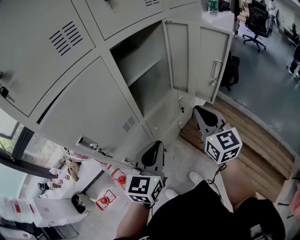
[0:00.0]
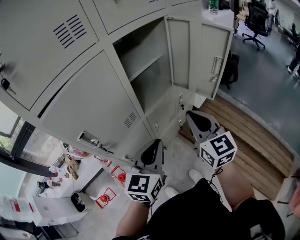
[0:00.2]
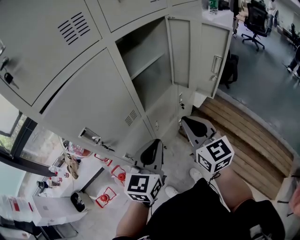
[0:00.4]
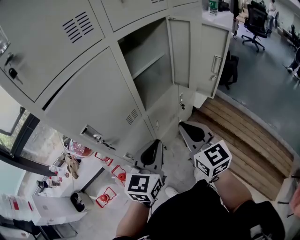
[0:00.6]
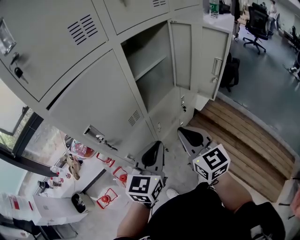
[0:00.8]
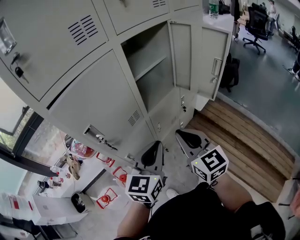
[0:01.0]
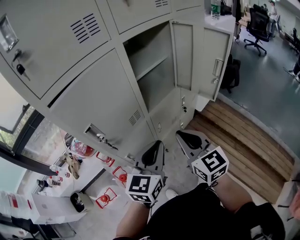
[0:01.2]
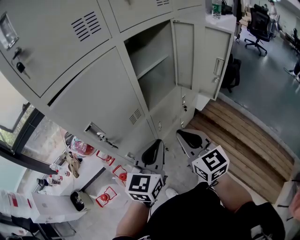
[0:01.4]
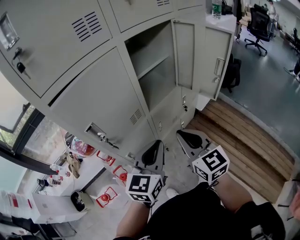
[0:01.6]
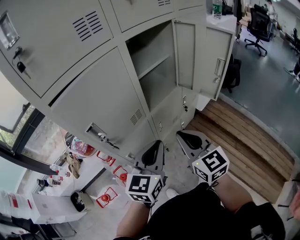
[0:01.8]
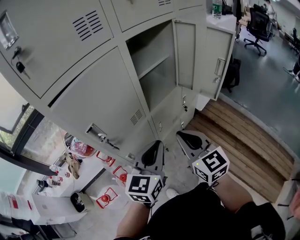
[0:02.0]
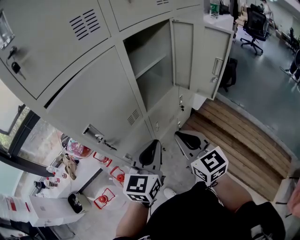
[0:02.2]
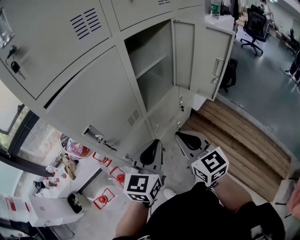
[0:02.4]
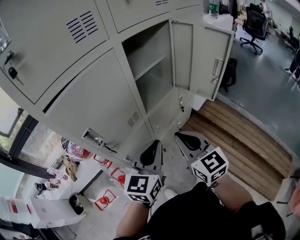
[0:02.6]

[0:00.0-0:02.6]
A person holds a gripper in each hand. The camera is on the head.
0:00.0 to 0:01.2: The right gripper goes about 15 cm to the left and backward.
0:01.2 to 0:02.6: The grippers stay close to where they were, moving slightly.

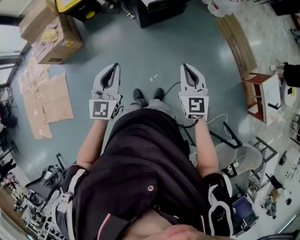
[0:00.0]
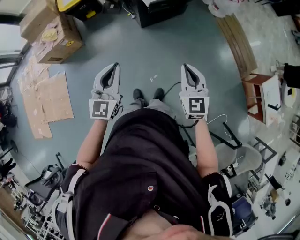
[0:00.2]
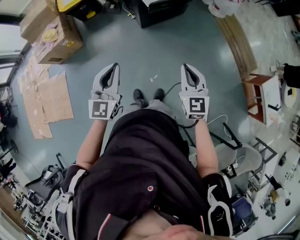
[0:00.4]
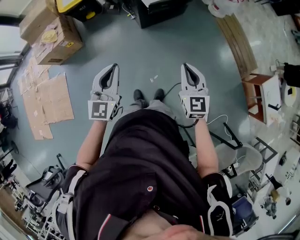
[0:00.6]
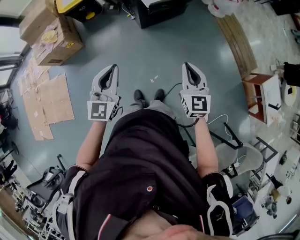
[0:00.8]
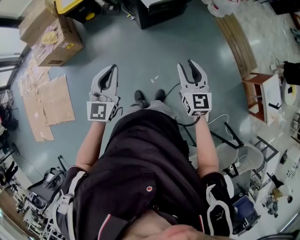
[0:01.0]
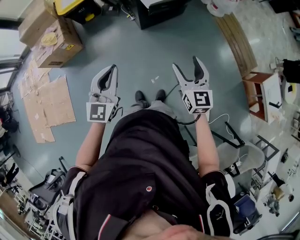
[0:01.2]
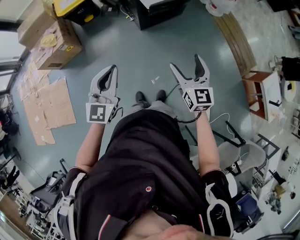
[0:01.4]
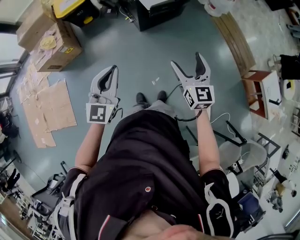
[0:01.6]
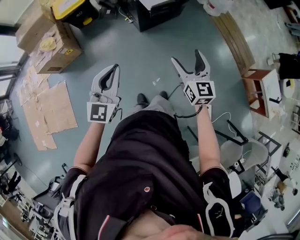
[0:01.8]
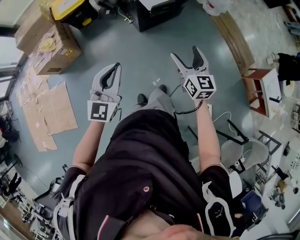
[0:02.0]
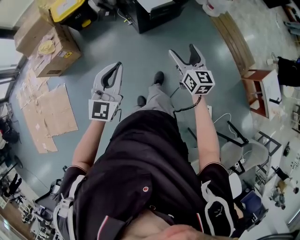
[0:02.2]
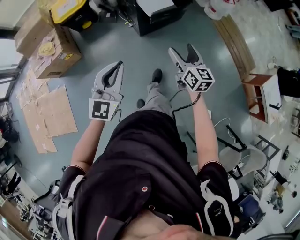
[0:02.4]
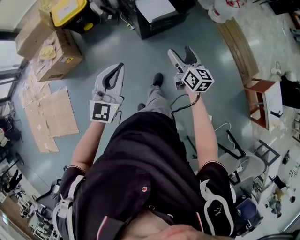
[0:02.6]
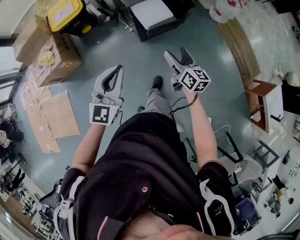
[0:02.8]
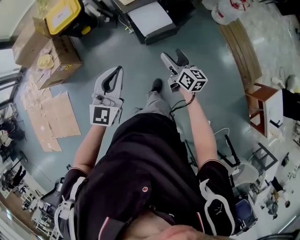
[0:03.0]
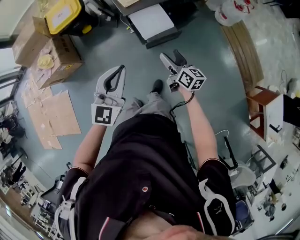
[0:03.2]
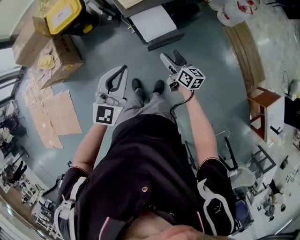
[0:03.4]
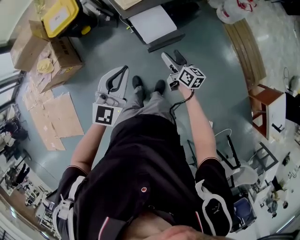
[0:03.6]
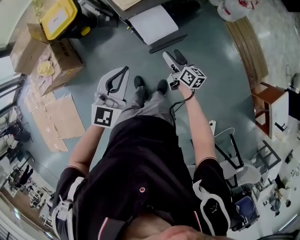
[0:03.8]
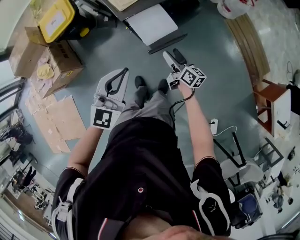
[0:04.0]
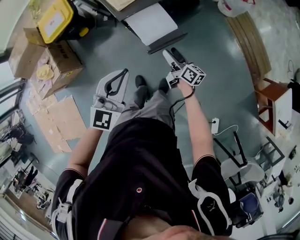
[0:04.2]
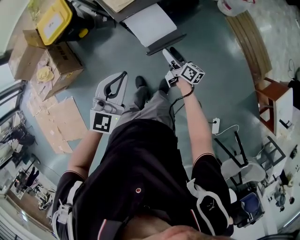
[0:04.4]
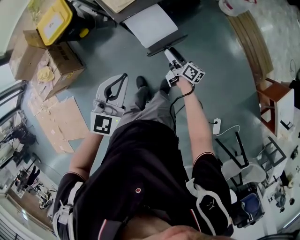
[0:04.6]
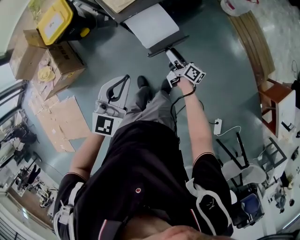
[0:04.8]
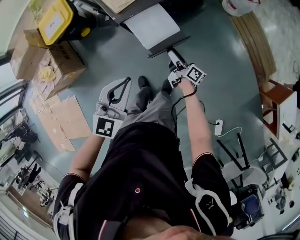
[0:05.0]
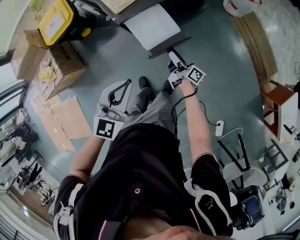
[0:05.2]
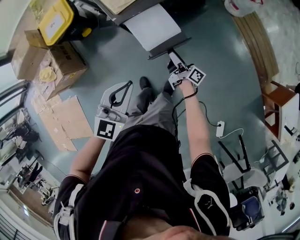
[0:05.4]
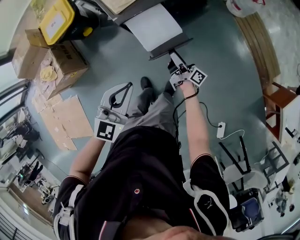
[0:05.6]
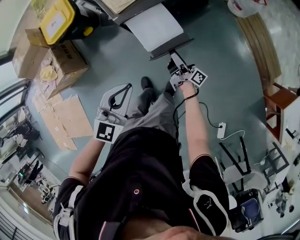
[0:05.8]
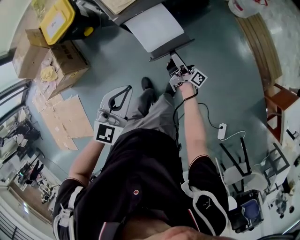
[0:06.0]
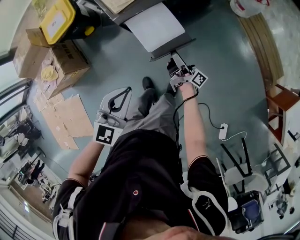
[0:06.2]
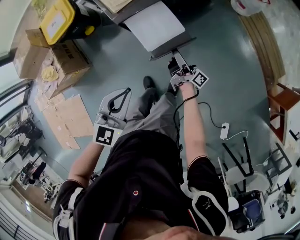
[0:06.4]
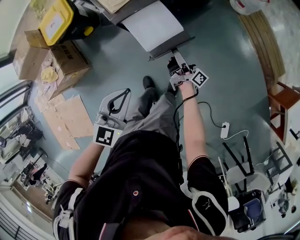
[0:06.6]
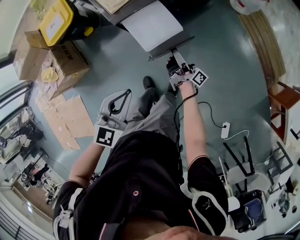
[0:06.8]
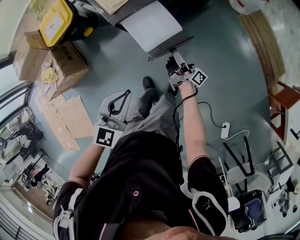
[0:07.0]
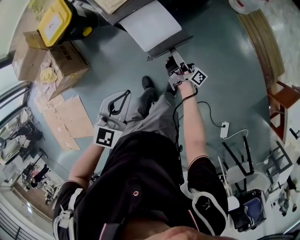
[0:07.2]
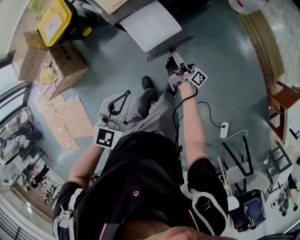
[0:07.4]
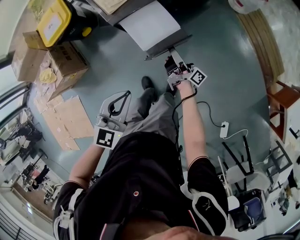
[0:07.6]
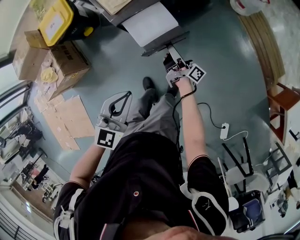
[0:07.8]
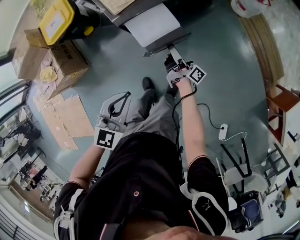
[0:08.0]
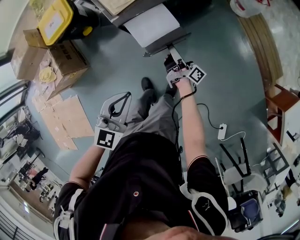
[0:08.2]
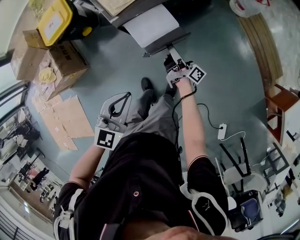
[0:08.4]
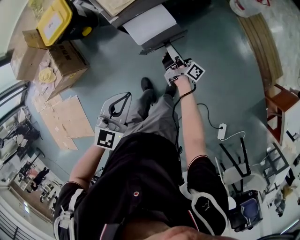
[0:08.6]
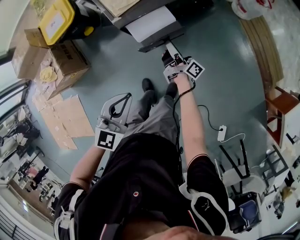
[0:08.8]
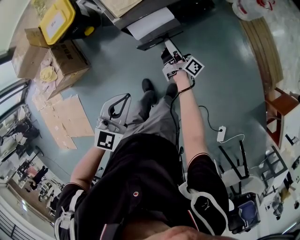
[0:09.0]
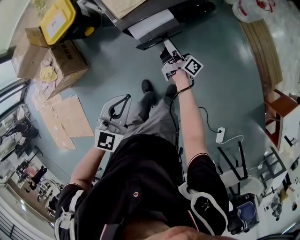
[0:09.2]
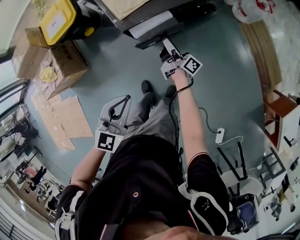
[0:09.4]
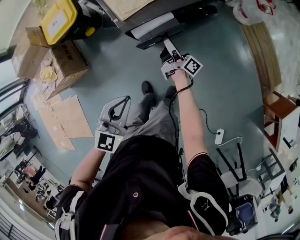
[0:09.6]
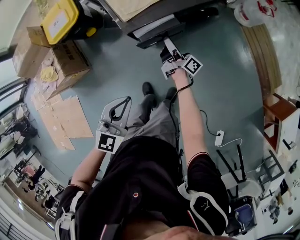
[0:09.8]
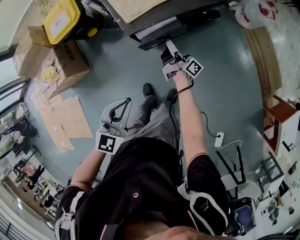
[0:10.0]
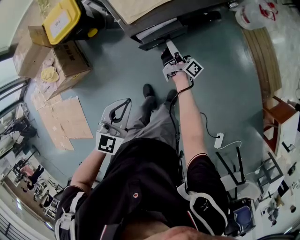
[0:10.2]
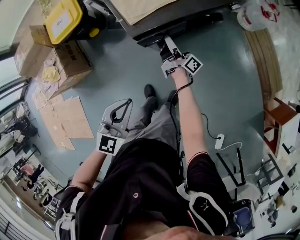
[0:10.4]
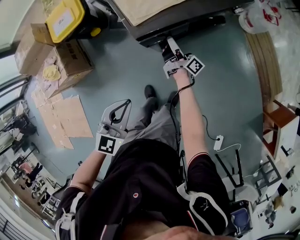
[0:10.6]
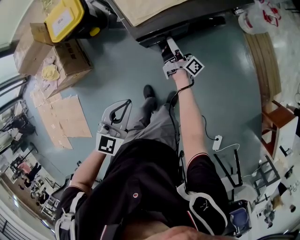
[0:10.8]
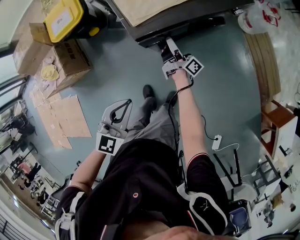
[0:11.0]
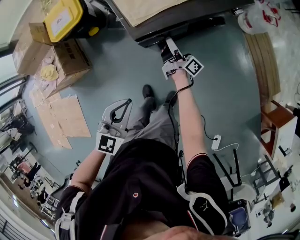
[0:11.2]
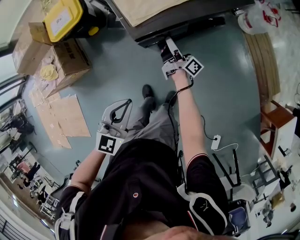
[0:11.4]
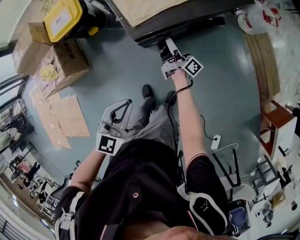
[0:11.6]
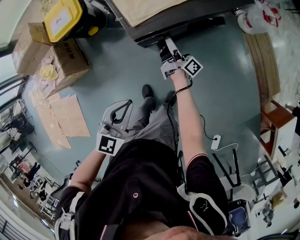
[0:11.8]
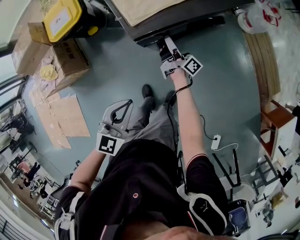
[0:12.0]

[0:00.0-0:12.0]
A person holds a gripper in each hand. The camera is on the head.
0:00.0 to 0:01.6: The right gripper ends up roughly 5 cm from where it was, and opens.
0:01.6 to 0:03.0: The right gripper is displaced forward and downward by approximately 30 cm, and swivels roughly 40 degrees. Meanwhile the left gripper goes about 25 cm forward.
0:03.0 to 0:04.4: The right gripper heads downward and forward, covering some 20 cm, and swivels roughly 20 degrees. The left gripper goes approximately 10 cm forward and downward.
0:04.4 to 0:06.0: The left gripper shifts approximately 5 cm downward. The right gripper turns by some 30 degrees.
0:06.0 to 0:07.6: The grippers stay close to where they were, moving slightly.
0:07.6 to 0:09.0: The right gripper is displaced forward by approximately 5 cm.
0:09.0 to 0:10.4: The right gripper moves forward, some 5 cm.
0:10.4 to 0:12.0: The grippers move only a little.

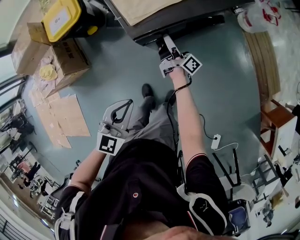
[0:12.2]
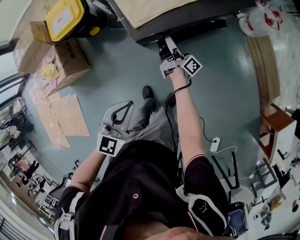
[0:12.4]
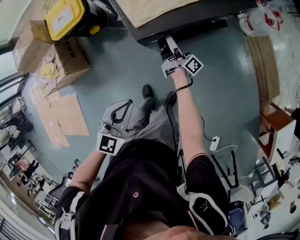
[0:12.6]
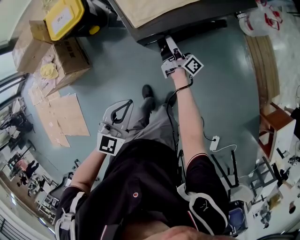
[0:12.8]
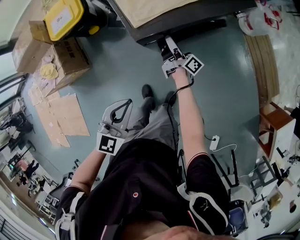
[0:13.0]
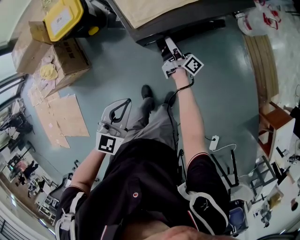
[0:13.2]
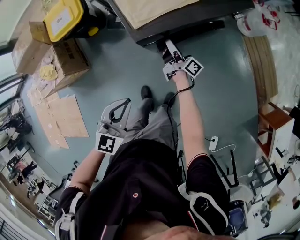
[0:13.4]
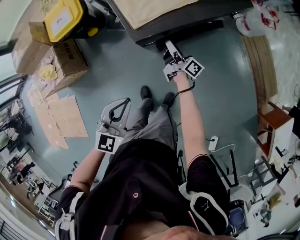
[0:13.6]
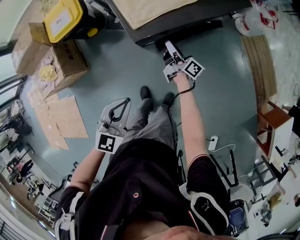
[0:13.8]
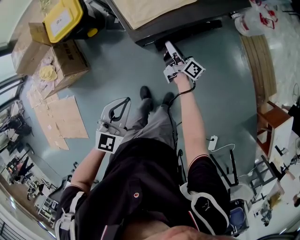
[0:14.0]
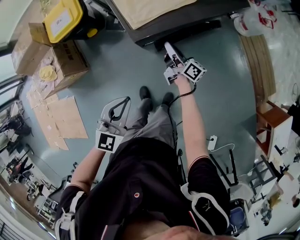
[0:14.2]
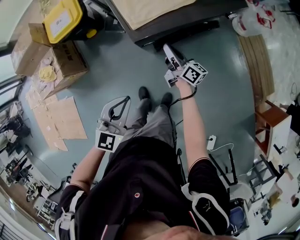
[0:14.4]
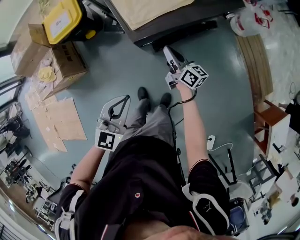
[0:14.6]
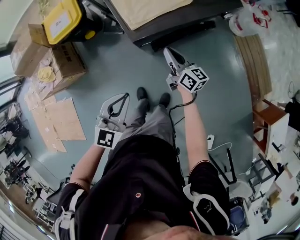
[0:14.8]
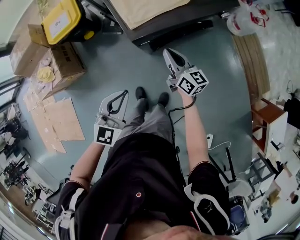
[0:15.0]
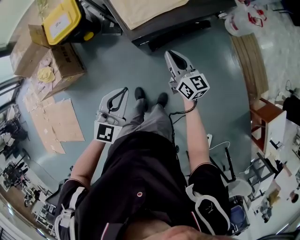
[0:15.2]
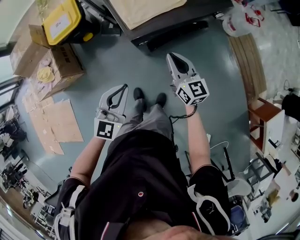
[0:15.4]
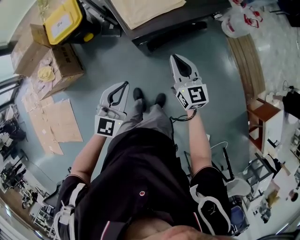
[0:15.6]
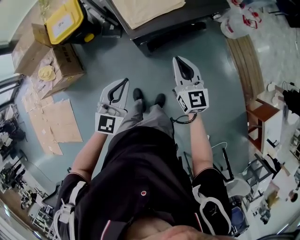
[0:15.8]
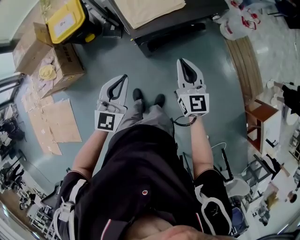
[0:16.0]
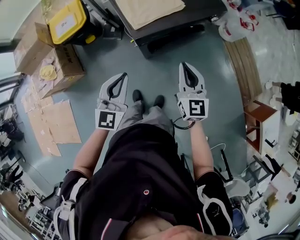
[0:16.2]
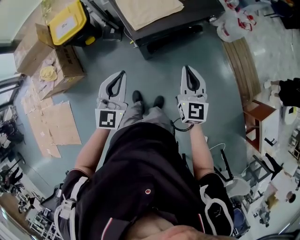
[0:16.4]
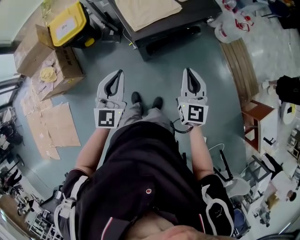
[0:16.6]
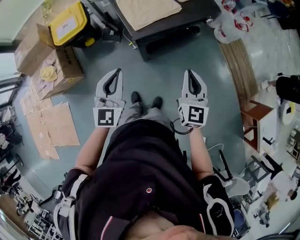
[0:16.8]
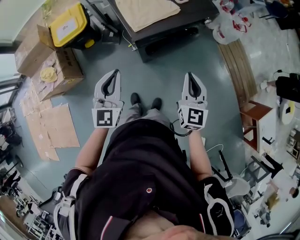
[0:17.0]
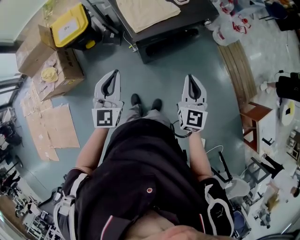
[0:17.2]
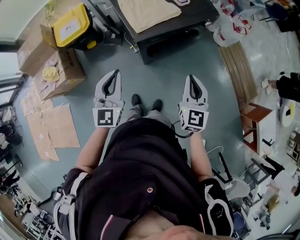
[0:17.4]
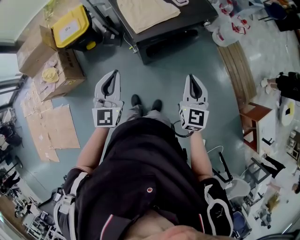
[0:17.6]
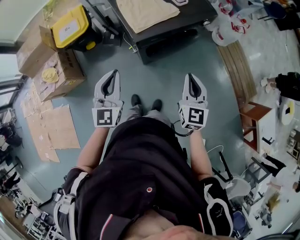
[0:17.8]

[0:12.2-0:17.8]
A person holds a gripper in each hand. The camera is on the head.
0:12.2 to 0:13.6: The grippers make only small movements.
0:13.6 to 0:15.0: The right gripper is displaced upward and backward by roughly 15 cm, and changes its angle by some 40 degrees.
0:15.0 to 0:16.4: The right gripper is displaced upward and backward by roughly 20 cm, and turns by about 40 degrees, while the left gripper travels upward by roughly 10 cm.
0:16.4 to 0:17.8: The right gripper changes place by roughly 5 cm.

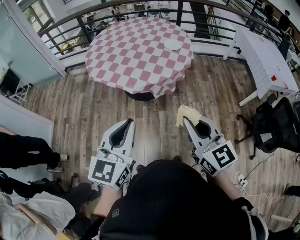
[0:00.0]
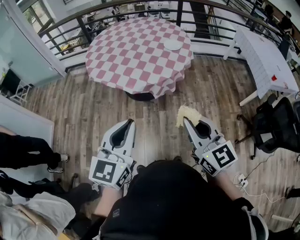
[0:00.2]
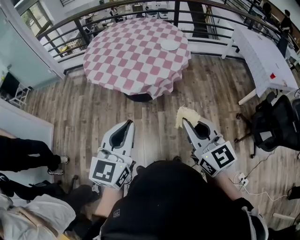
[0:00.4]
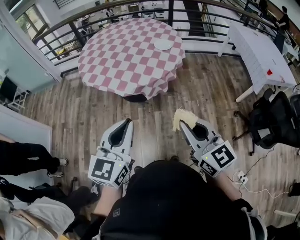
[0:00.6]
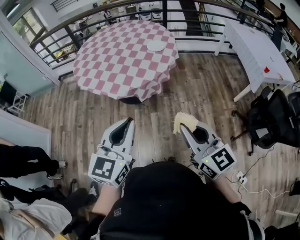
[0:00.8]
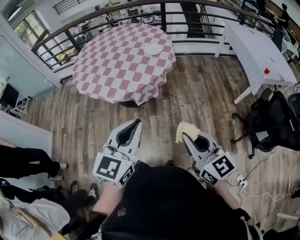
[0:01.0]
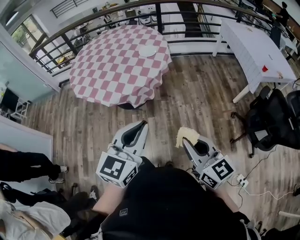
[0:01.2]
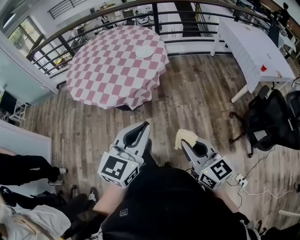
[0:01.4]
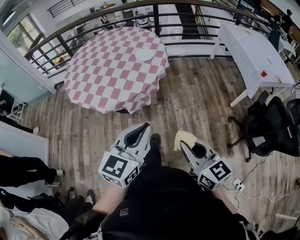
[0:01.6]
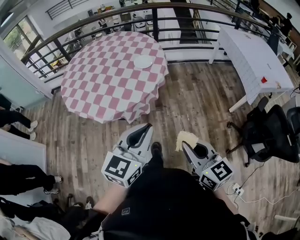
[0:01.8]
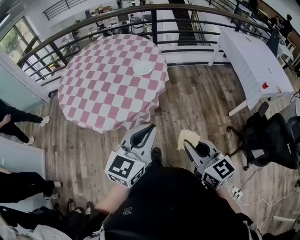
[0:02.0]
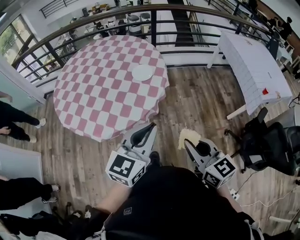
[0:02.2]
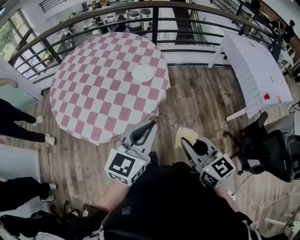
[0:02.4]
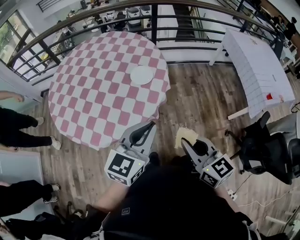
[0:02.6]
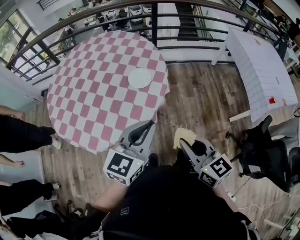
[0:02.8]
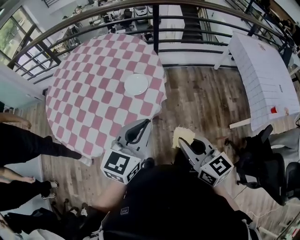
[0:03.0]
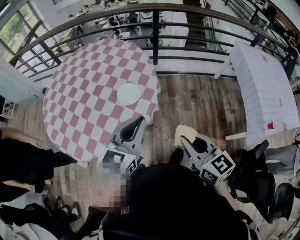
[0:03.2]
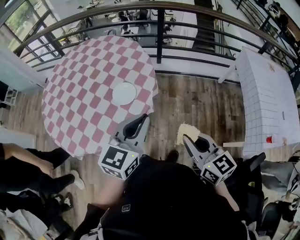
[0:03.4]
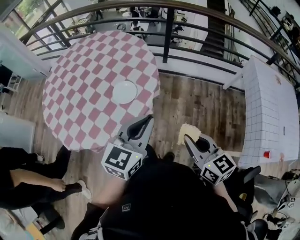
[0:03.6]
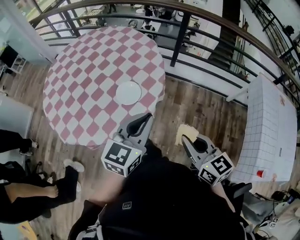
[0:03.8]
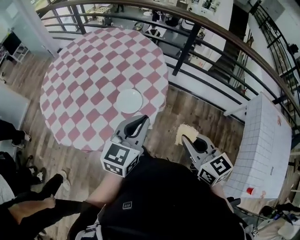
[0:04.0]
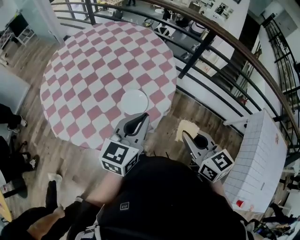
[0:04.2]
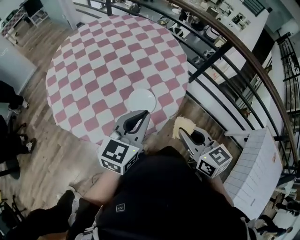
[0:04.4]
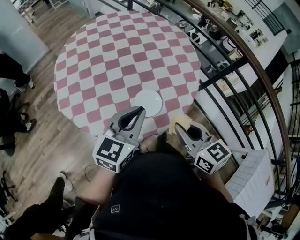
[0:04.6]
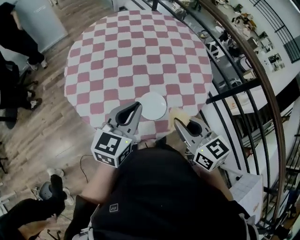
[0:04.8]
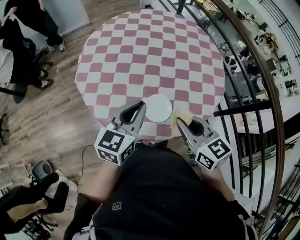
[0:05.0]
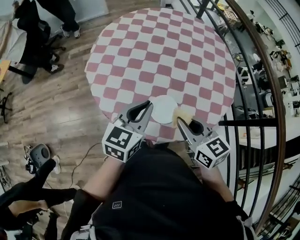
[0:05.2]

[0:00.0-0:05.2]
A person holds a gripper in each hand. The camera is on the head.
0:00.0 to 0:01.8: The left gripper goes approximately 30 cm to the right and forward; the right gripper moves to the right, some 20 cm.
0:01.8 to 0:03.4: Both grippers travel together forward, roughly 30 cm.
0:03.4 to 0:05.2: The right gripper moves roughly 35 cm, and rotates roughly 80 degrees, while the left gripper moves roughly 20 cm, and rotates approximately 70 degrees.
